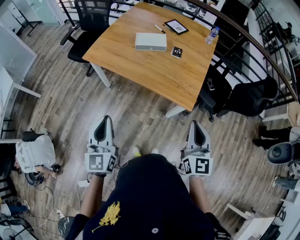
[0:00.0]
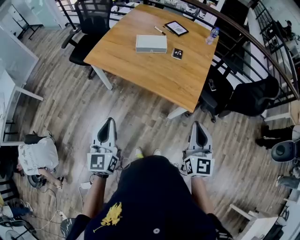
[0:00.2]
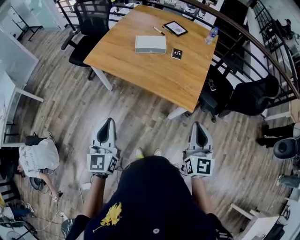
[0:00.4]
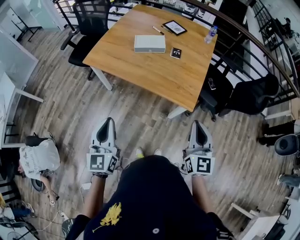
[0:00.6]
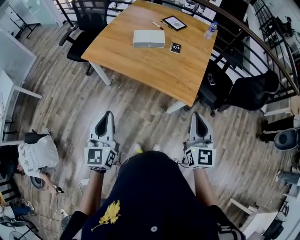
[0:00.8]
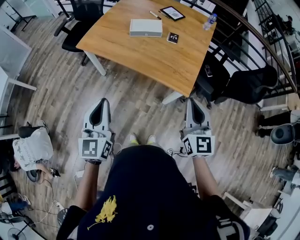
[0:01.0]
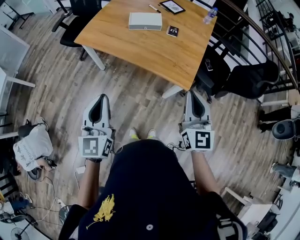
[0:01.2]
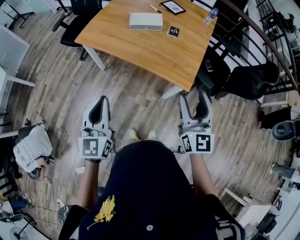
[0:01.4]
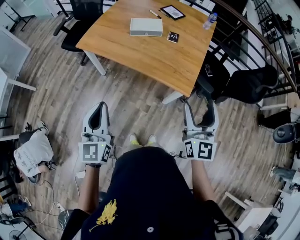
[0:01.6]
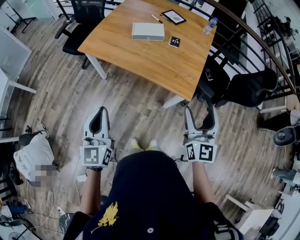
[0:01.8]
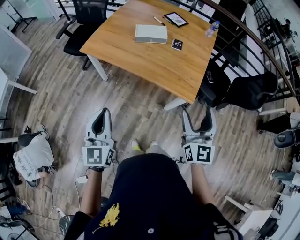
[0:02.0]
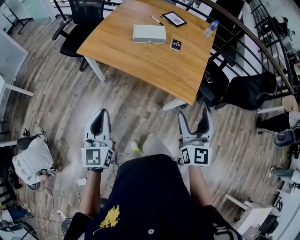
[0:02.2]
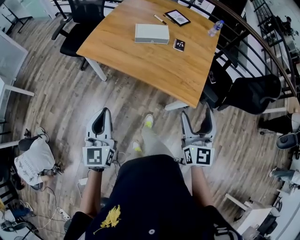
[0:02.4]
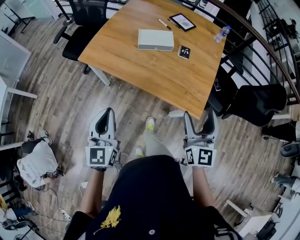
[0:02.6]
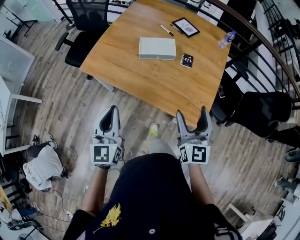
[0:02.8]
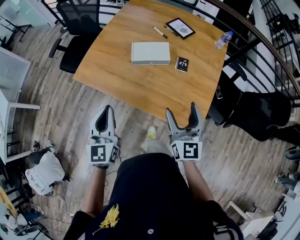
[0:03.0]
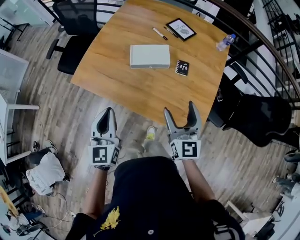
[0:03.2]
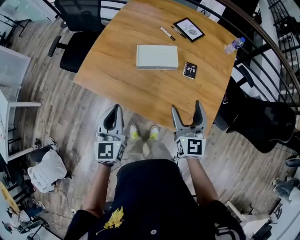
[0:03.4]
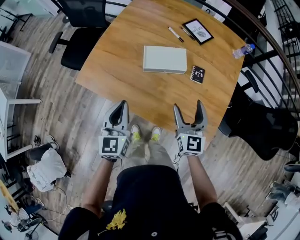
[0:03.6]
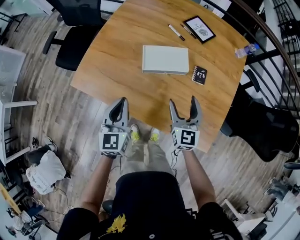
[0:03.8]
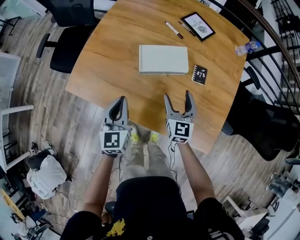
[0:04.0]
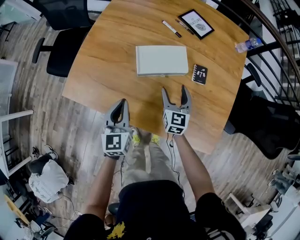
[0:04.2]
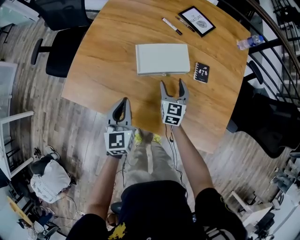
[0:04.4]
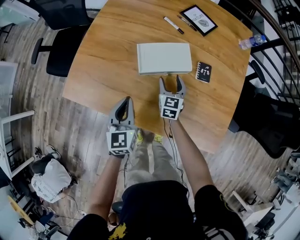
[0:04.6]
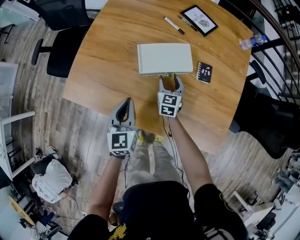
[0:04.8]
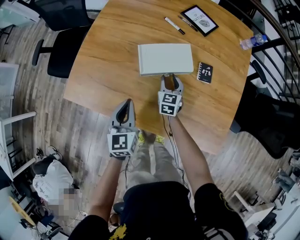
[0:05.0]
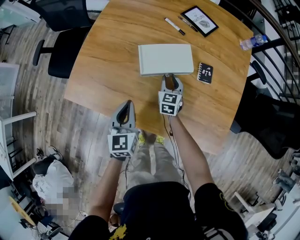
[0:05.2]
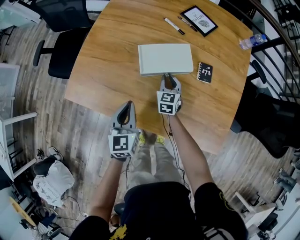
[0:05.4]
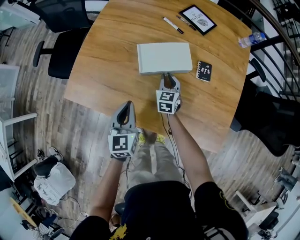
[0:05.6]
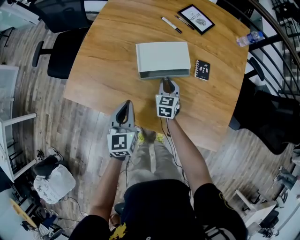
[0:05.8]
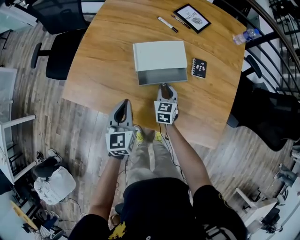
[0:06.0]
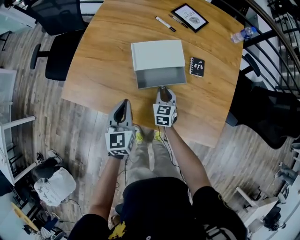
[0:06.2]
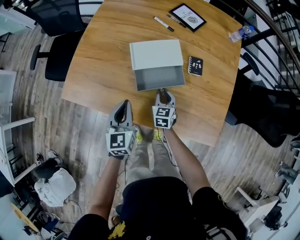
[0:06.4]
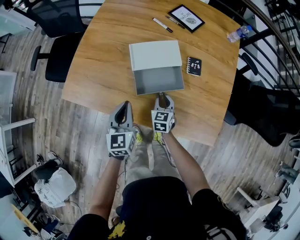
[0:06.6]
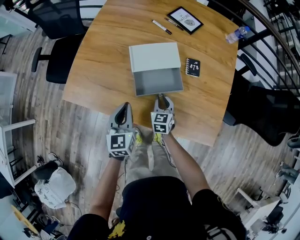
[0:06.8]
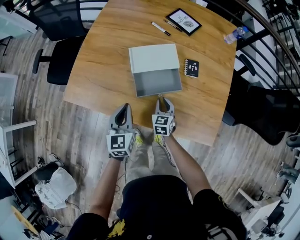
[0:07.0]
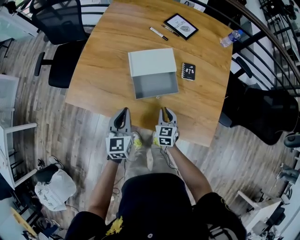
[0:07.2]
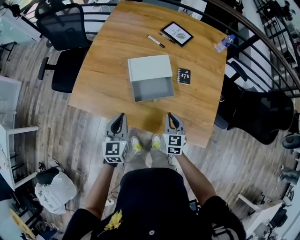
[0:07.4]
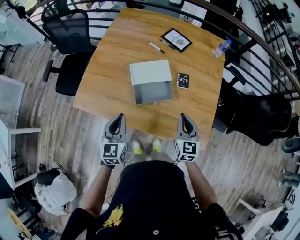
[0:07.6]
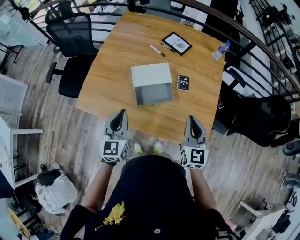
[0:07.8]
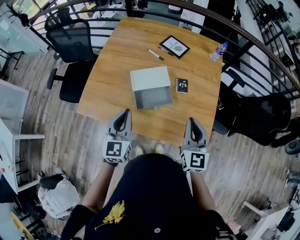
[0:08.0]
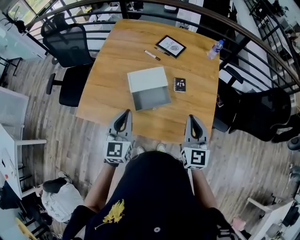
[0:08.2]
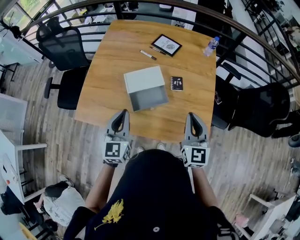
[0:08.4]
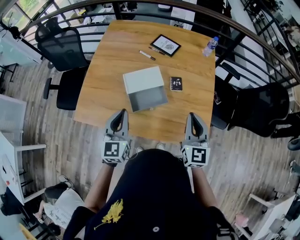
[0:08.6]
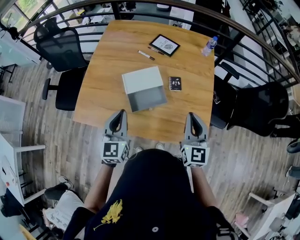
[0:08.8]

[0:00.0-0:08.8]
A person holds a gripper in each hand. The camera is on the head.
0:00.0 to 0:01.4: The right gripper opens.
0:01.4 to 0:03.0: The grippers both shift forward by about 30 cm.
0:03.0 to 0:04.4: The grippers both shift forward and downward by about 35 cm. The right gripper changes its angle by approximately 20 degrees.
0:04.4 to 0:05.8: The right gripper shifts by approximately 5 cm, and closes up.
0:05.8 to 0:07.4: The left gripper is displaced upward and backward by approximately 10 cm. The right gripper shifts some 25 cm backward, upward and to the right.
0:07.4 to 0:08.8: The right gripper goes roughly 25 cm upward and to the right, and turns by about 20 degrees. Meanwhile the left gripper is displaced upward by approximately 10 cm.

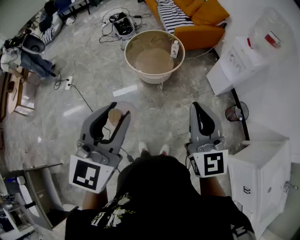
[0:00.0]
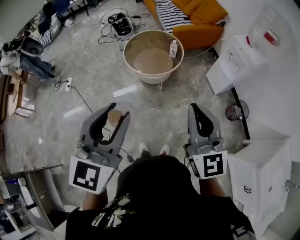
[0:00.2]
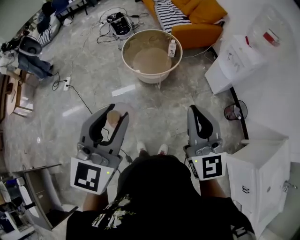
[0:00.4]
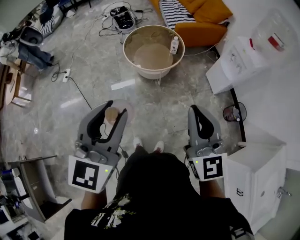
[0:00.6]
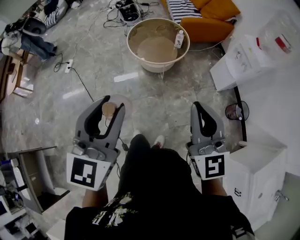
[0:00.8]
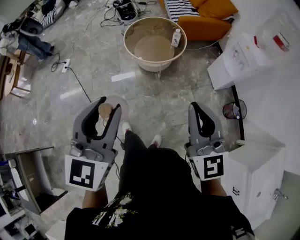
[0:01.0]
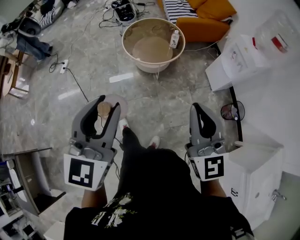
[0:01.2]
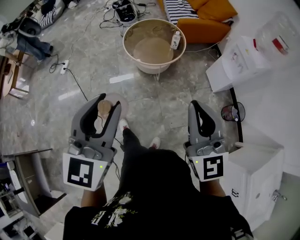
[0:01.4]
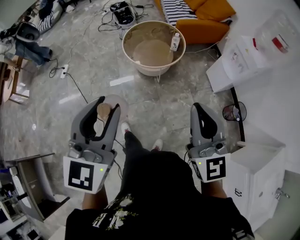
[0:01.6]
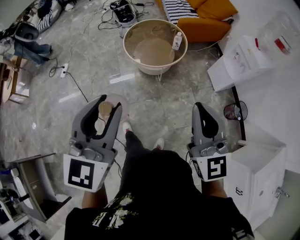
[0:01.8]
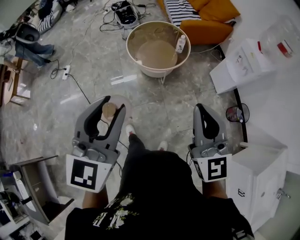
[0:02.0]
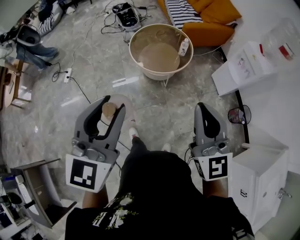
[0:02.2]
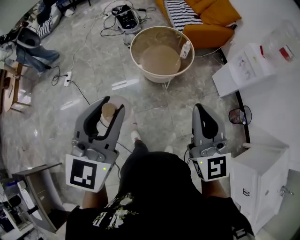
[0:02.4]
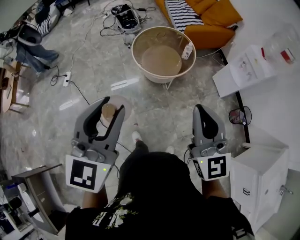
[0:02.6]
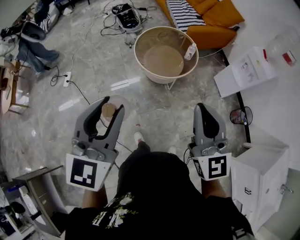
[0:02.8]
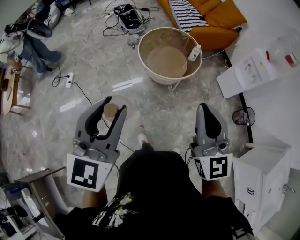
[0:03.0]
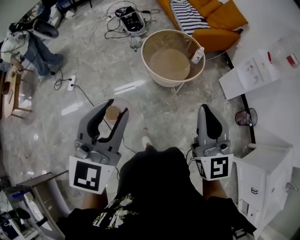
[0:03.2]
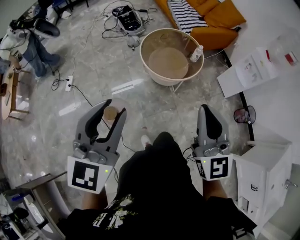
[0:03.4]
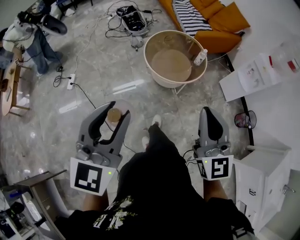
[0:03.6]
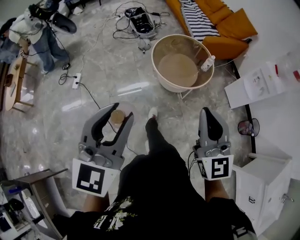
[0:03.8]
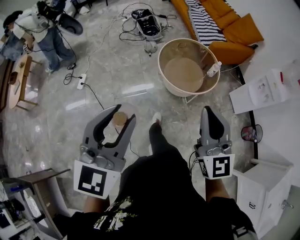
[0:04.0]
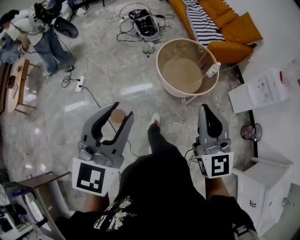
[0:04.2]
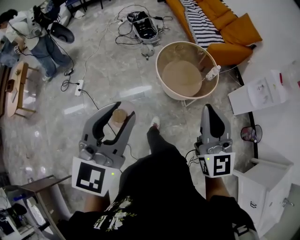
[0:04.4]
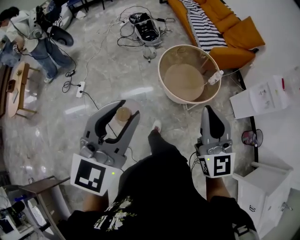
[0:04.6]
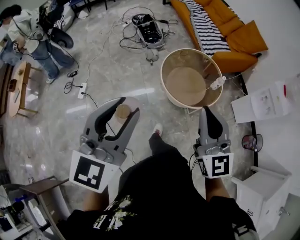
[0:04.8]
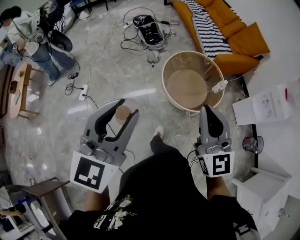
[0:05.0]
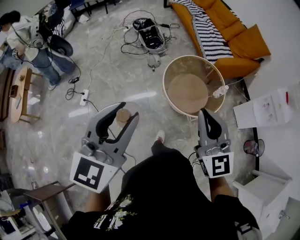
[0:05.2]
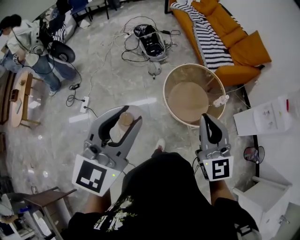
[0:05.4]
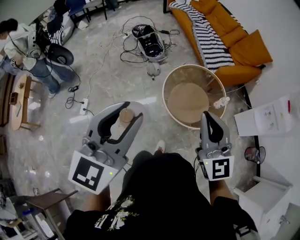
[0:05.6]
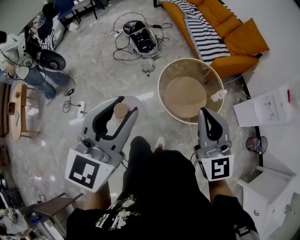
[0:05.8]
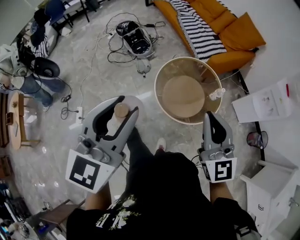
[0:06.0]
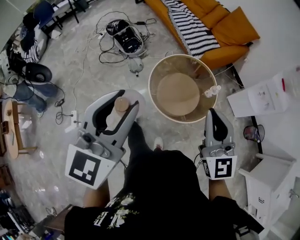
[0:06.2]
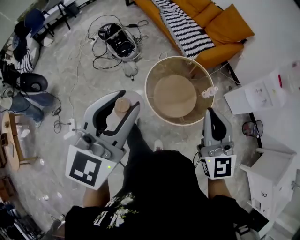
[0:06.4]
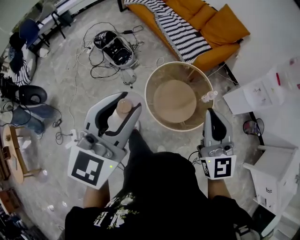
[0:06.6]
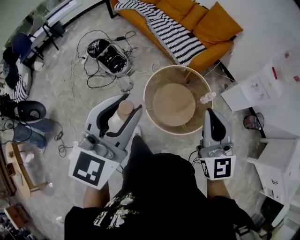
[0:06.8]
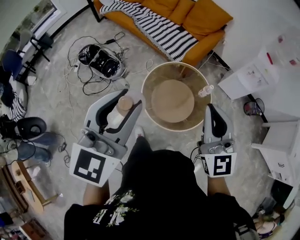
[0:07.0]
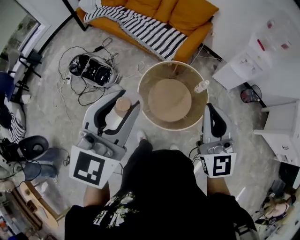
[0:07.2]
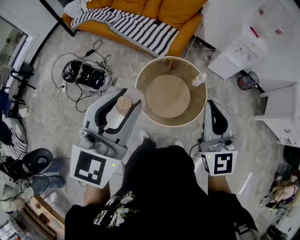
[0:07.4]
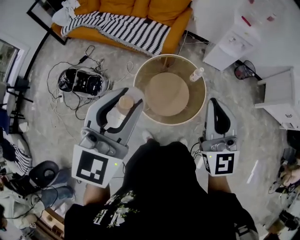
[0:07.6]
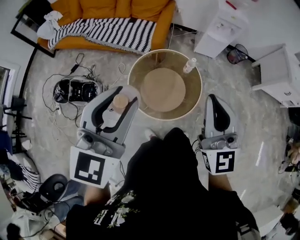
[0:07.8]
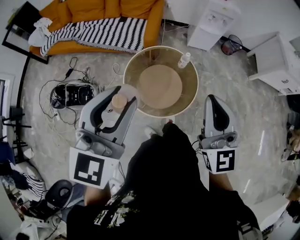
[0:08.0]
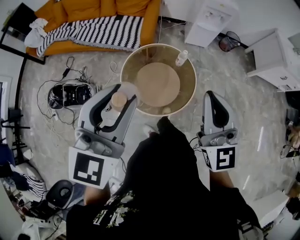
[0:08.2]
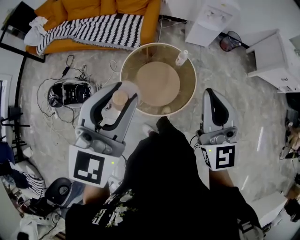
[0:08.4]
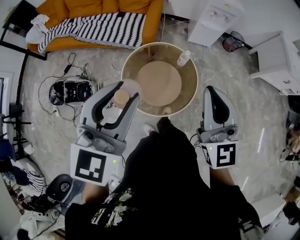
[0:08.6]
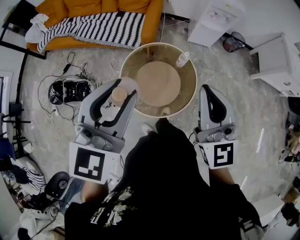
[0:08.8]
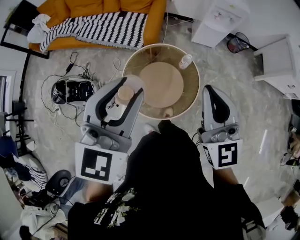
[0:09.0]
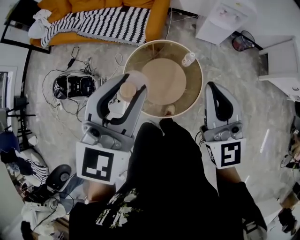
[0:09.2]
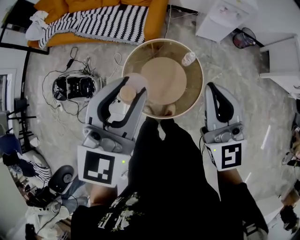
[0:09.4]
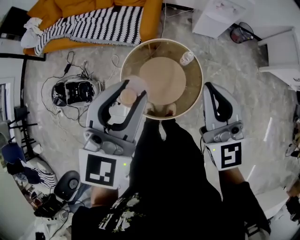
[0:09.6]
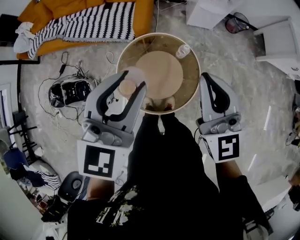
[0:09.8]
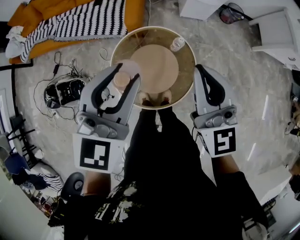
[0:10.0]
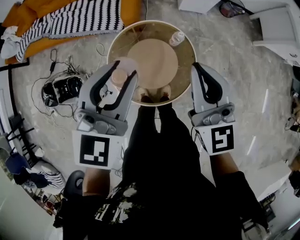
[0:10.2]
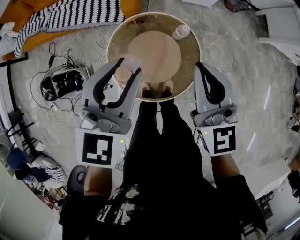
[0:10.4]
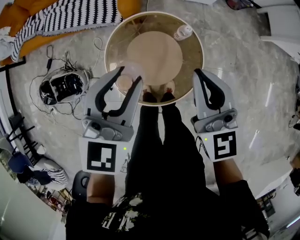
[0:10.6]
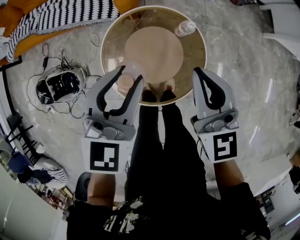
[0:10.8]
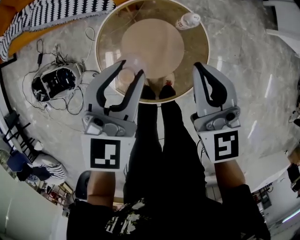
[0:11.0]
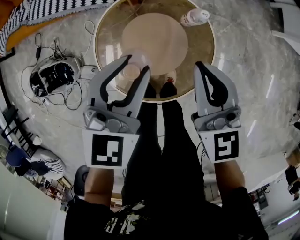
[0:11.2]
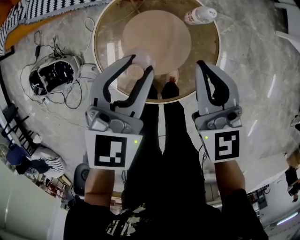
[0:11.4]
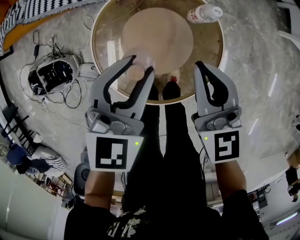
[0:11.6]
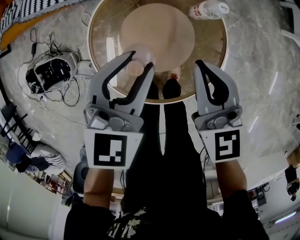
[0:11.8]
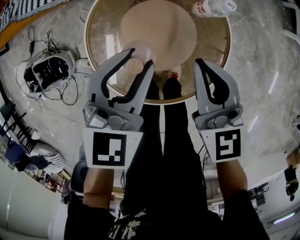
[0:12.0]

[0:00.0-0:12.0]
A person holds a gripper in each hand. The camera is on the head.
0:00.0 to 0:01.6: The grippers move only a little.
0:01.6 to 0:03.0: The grippers both shift to the left and forward by some 25 cm.
0:03.0 to 0:04.4: Both grippers move to the left and forward, about 20 cm.
0:04.4 to 0:06.0: The two grippers go approximately 30 cm forward.
0:06.0 to 0:07.6: The left gripper changes place by approximately 35 cm, and rotates roughly 50 degrees, while the right gripper changes place by some 20 cm, and swivels some 50 degrees.
0:07.6 to 0:09.0: The two grippers go roughly 15 cm forward and to the right.
0:09.0 to 0:10.4: Both grippers travel together downward and forward, approximately 20 cm.
0:10.4 to 0:12.0: The grippers both shift downward by some 35 cm.

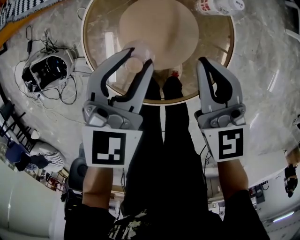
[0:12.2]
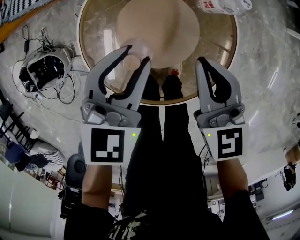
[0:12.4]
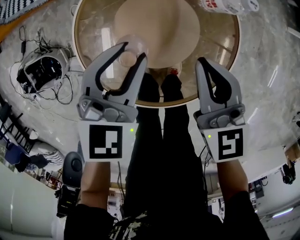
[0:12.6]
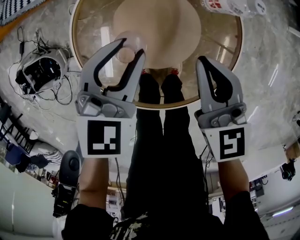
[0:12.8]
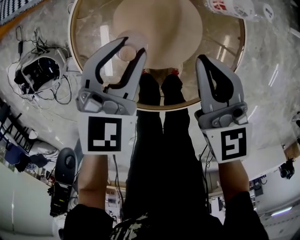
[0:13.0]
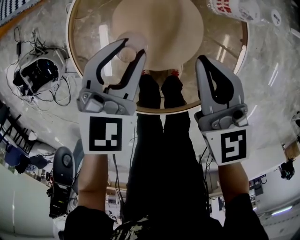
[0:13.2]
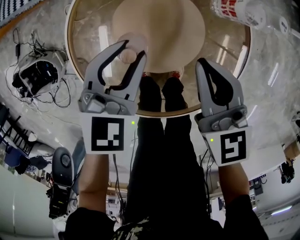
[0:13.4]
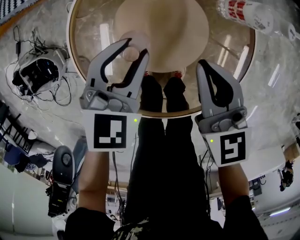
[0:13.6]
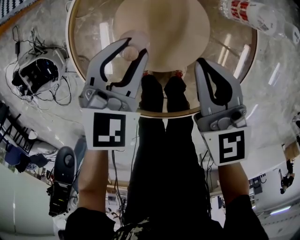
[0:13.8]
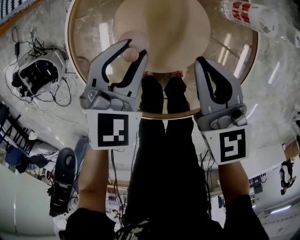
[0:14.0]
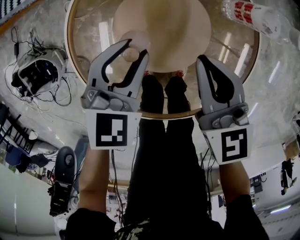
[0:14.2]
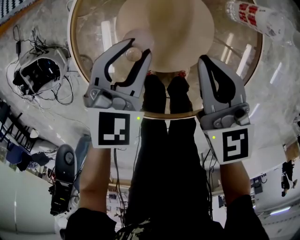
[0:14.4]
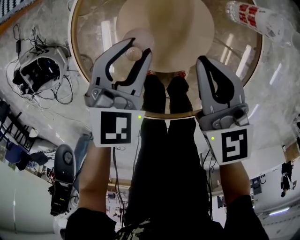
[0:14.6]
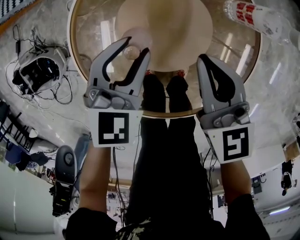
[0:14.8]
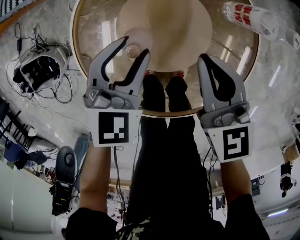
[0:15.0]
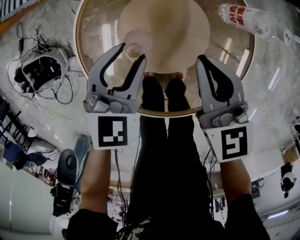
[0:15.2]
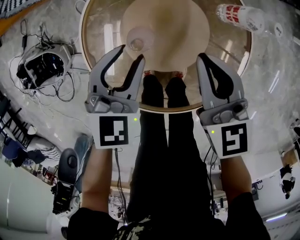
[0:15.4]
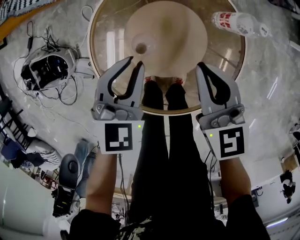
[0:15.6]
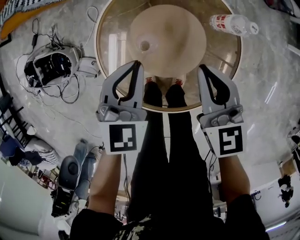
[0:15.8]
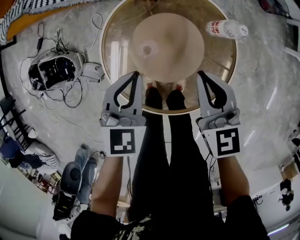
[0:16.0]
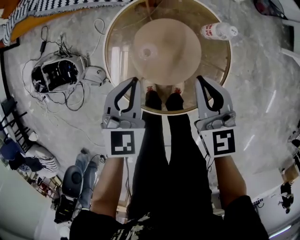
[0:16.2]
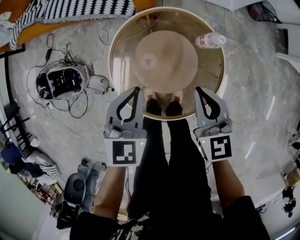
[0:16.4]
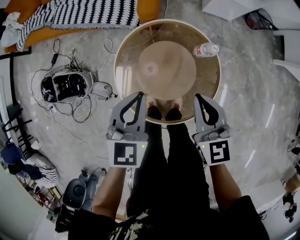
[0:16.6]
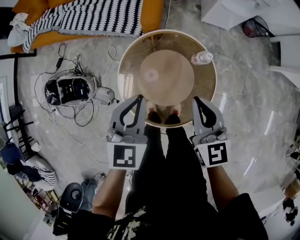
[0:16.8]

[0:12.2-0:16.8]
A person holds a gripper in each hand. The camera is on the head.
0:12.2 to 0:13.8: The two grippers go some 15 cm downward.
0:13.8 to 0:15.2: The grippers move only a little.
0:15.2 to 0:16.8: The grippers both shift upward by roughly 35 cm. The left gripper closes.
